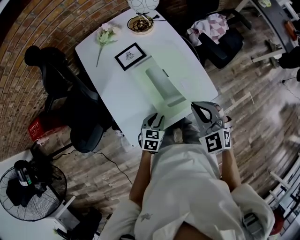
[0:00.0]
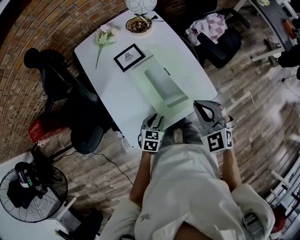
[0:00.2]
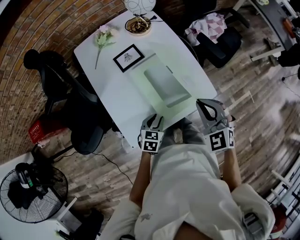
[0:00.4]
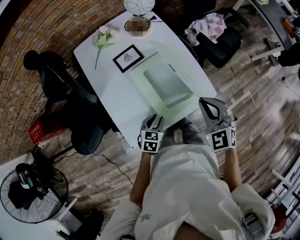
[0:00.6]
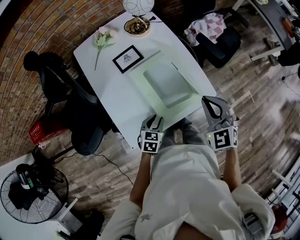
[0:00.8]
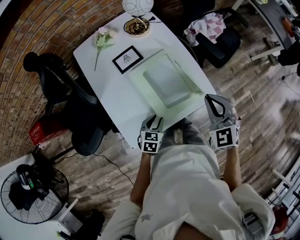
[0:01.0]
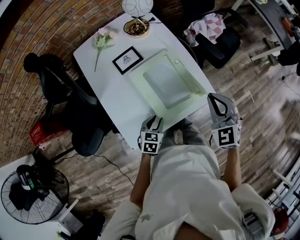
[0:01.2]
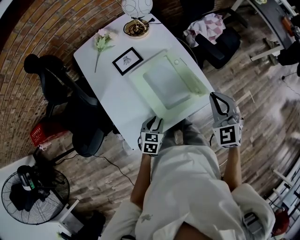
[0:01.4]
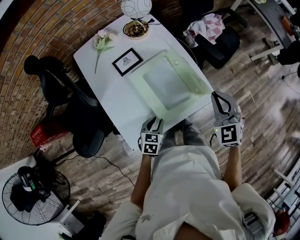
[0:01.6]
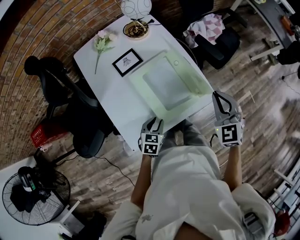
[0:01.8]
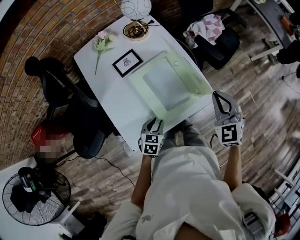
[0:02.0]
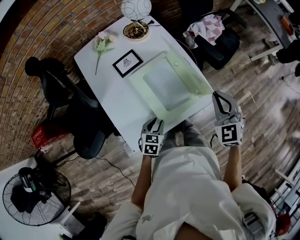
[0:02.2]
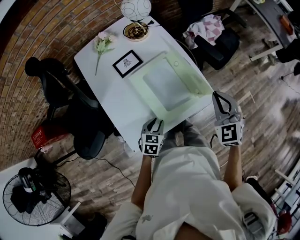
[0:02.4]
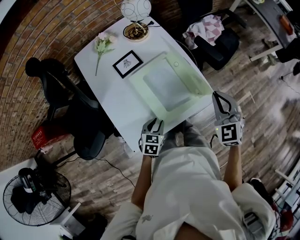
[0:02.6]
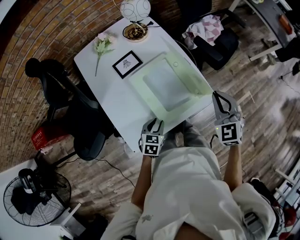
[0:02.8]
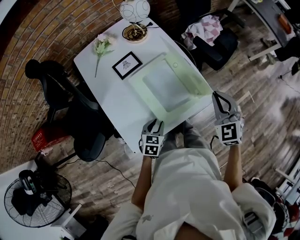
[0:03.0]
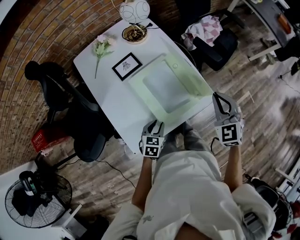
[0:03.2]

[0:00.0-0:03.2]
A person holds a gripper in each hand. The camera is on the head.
0:00.0 to 0:01.6: The right gripper heads to the right and forward, covering some 10 cm.
0:01.6 to 0:03.2: The two grippers keep their place.

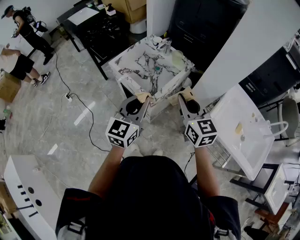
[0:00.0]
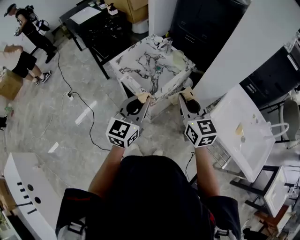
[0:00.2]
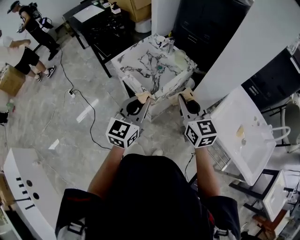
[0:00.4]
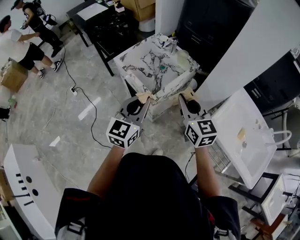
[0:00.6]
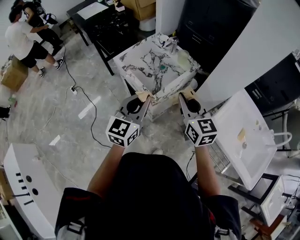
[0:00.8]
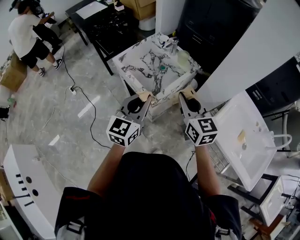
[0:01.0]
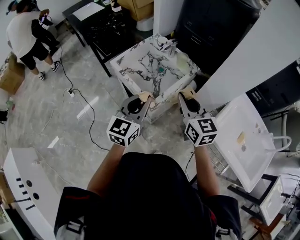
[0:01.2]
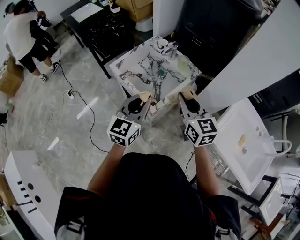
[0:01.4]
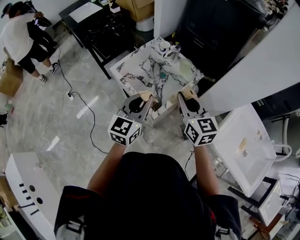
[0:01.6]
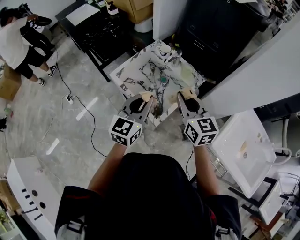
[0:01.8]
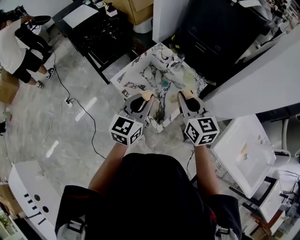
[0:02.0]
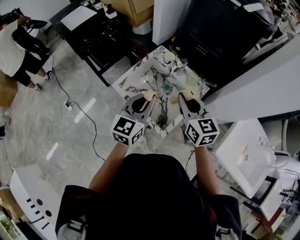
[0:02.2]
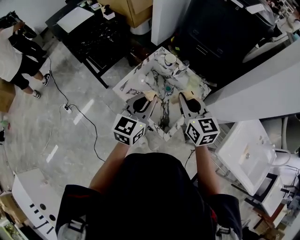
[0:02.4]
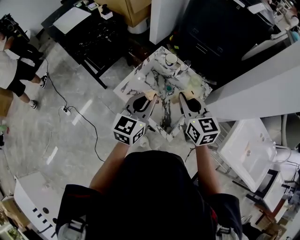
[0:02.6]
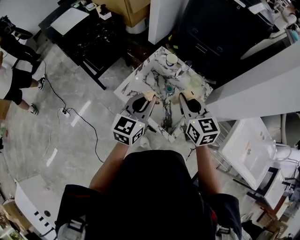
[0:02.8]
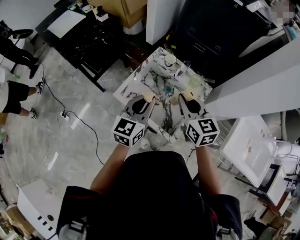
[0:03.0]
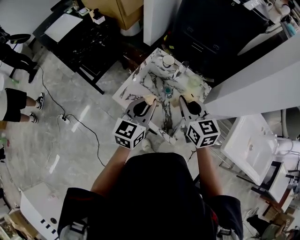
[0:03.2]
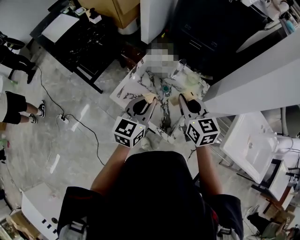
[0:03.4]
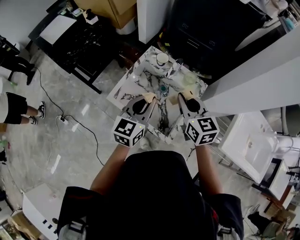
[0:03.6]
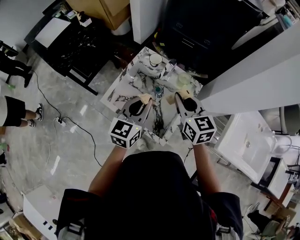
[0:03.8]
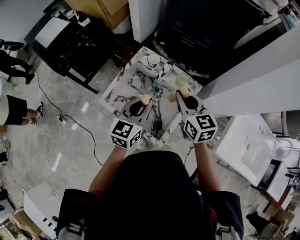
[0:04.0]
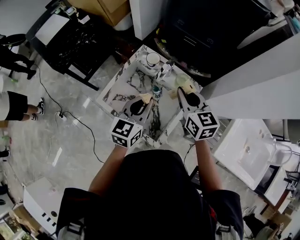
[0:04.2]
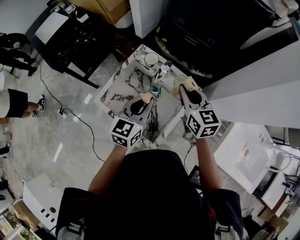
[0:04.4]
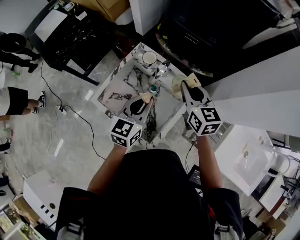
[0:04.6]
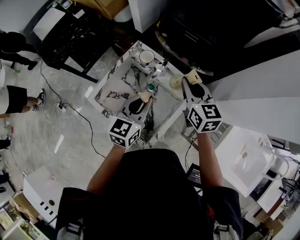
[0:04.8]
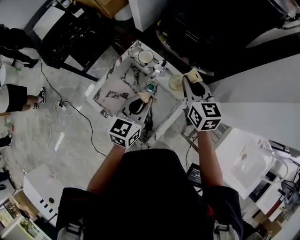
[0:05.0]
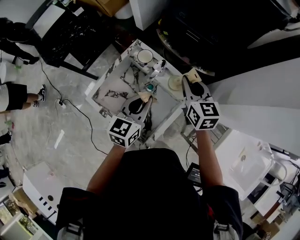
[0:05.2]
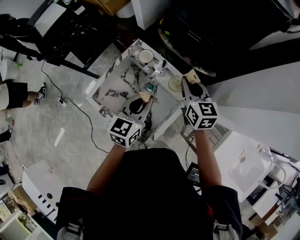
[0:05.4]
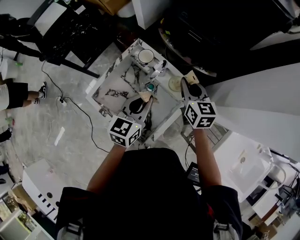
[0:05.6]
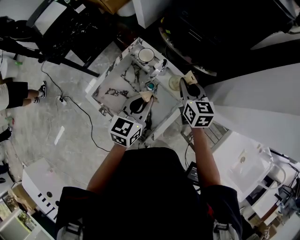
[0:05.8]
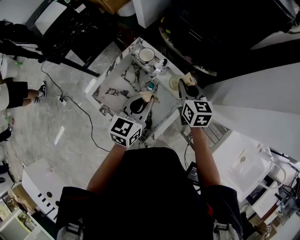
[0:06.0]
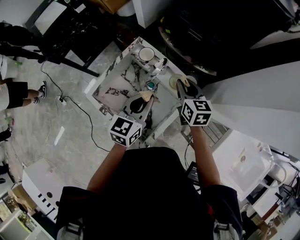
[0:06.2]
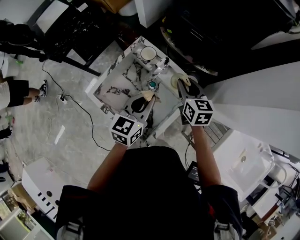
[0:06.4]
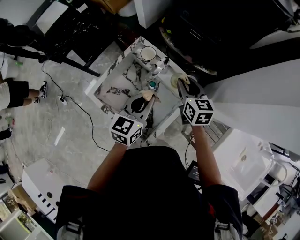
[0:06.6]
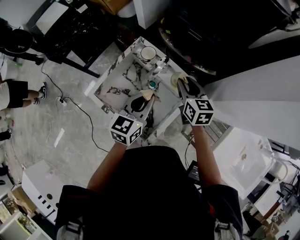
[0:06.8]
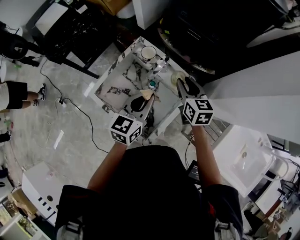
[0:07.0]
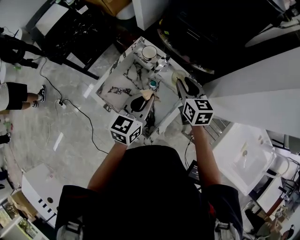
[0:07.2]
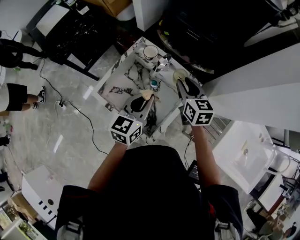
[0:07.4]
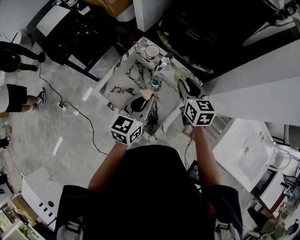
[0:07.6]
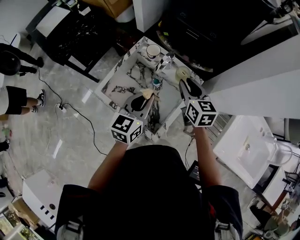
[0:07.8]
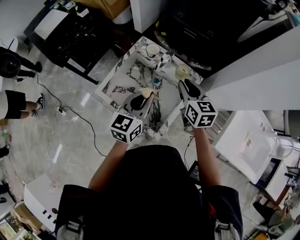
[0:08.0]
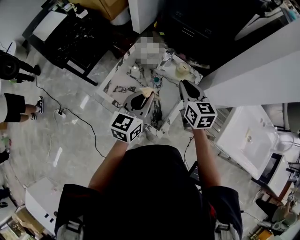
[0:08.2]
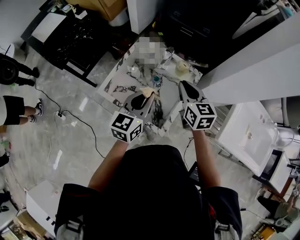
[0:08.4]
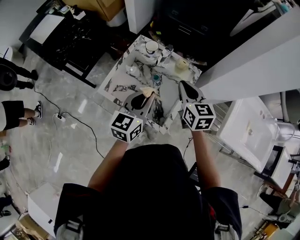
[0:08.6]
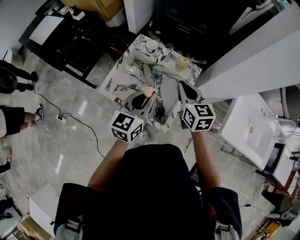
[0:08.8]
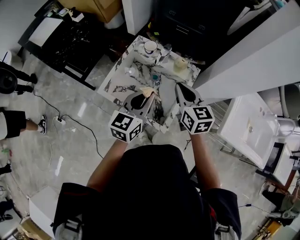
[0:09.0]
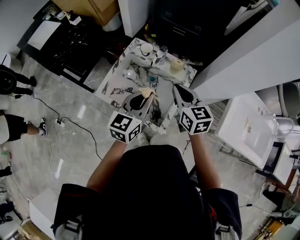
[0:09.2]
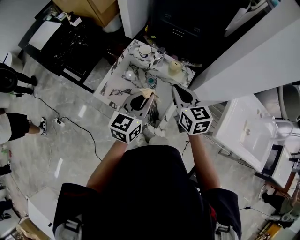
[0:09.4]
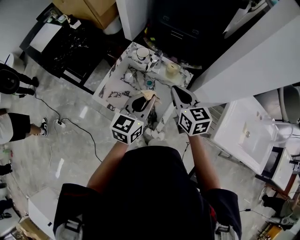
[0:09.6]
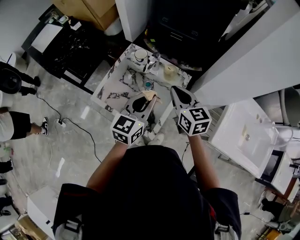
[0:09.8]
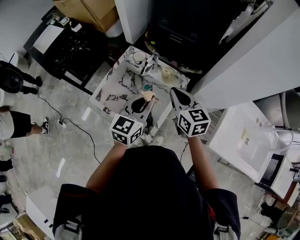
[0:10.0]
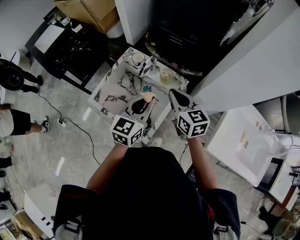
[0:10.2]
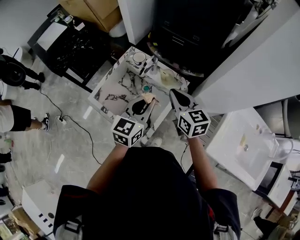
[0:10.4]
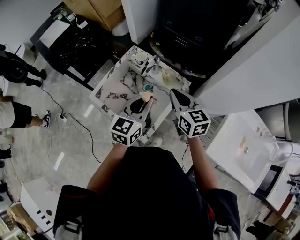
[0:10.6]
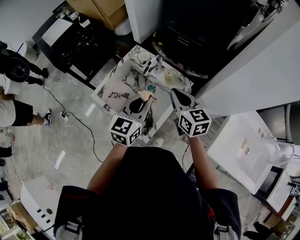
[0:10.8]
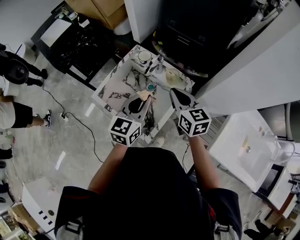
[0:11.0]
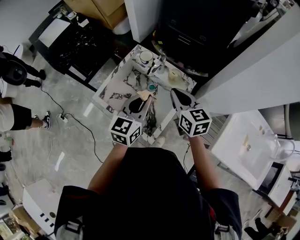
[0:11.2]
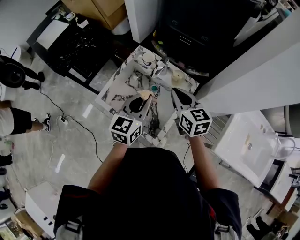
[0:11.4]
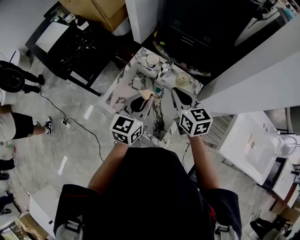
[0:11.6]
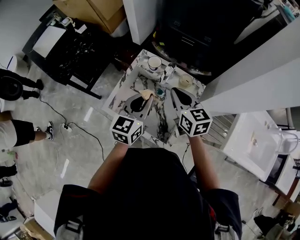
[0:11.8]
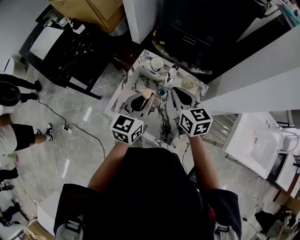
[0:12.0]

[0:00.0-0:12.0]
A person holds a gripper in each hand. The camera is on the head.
0:00.0 to 0:01.6: Both grippers move forward, about 10 cm.
0:01.6 to 0:03.0: Both grippers travel together forward and to the left, roughly 20 cm.
0:03.0 to 0:04.4: The left gripper heads to the right and forward, covering roughly 15 cm. Meanwhile the right gripper travels forward and to the right by roughly 15 cm.
0:04.4 to 0:06.0: The left gripper changes place by about 5 cm; the right gripper goes some 10 cm downward and forward.
0:06.0 to 0:07.6: The grippers both shift backward by approximately 5 cm.
0:07.6 to 0:09.0: The right gripper moves backward, roughly 10 cm, and closes up. The left gripper is displaced backward by roughly 5 cm.
0:09.0 to 0:10.4: The grippers both shift to the right by approximately 10 cm.
0:10.4 to 0:12.0: Both grippers move to the left and forward, some 15 cm.

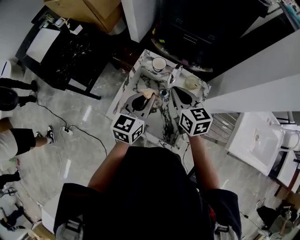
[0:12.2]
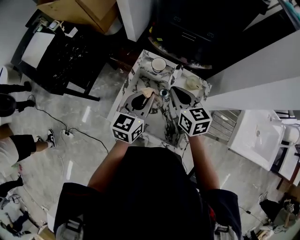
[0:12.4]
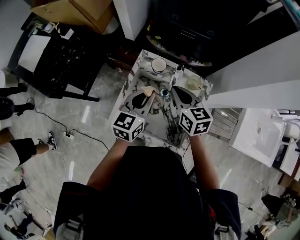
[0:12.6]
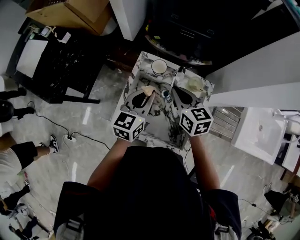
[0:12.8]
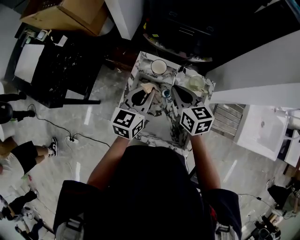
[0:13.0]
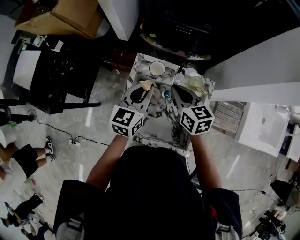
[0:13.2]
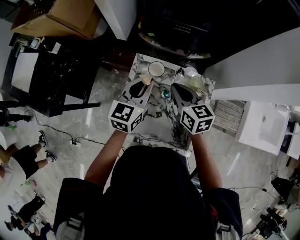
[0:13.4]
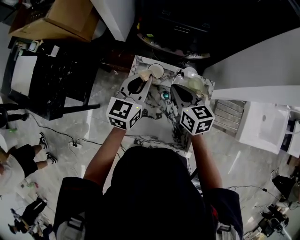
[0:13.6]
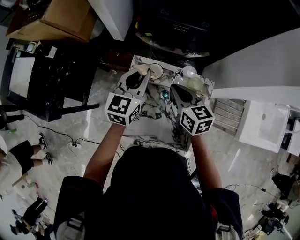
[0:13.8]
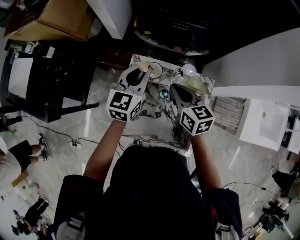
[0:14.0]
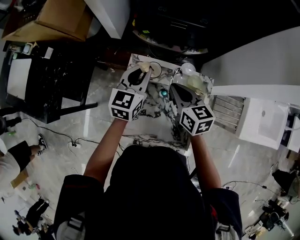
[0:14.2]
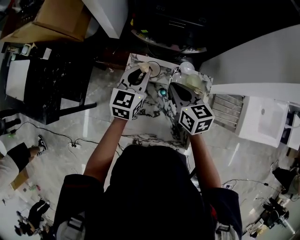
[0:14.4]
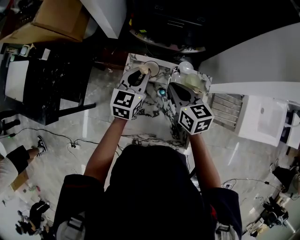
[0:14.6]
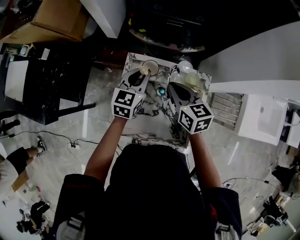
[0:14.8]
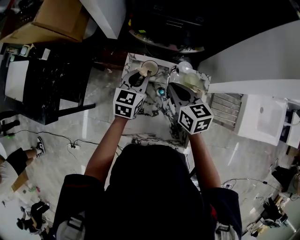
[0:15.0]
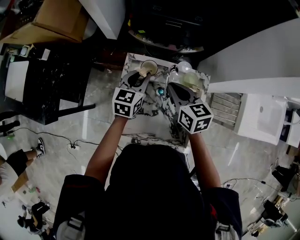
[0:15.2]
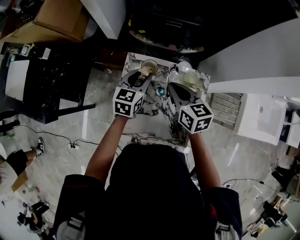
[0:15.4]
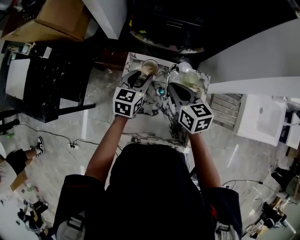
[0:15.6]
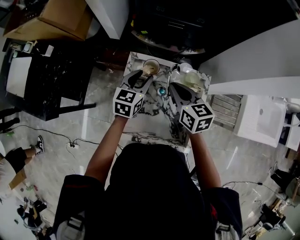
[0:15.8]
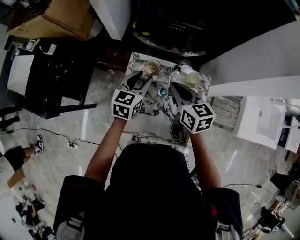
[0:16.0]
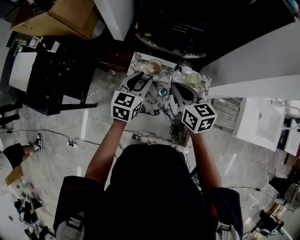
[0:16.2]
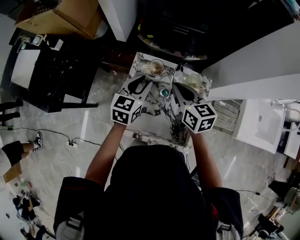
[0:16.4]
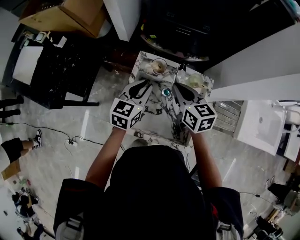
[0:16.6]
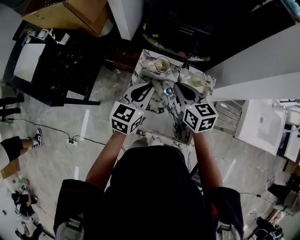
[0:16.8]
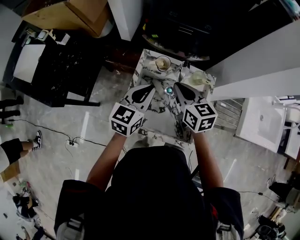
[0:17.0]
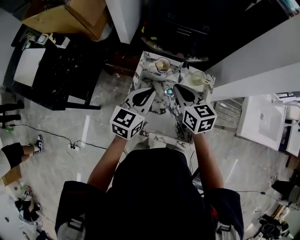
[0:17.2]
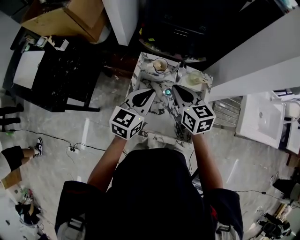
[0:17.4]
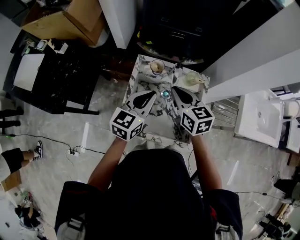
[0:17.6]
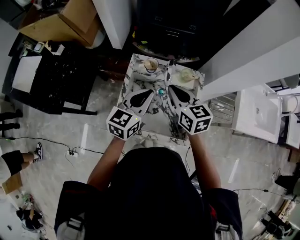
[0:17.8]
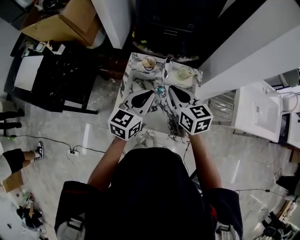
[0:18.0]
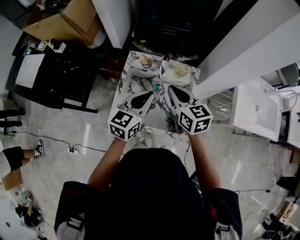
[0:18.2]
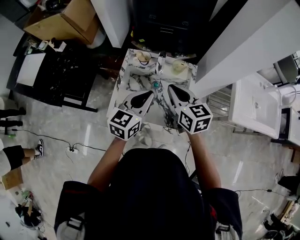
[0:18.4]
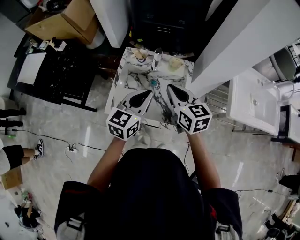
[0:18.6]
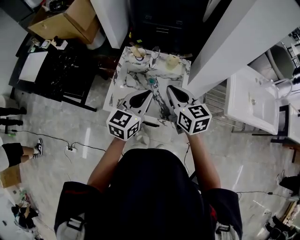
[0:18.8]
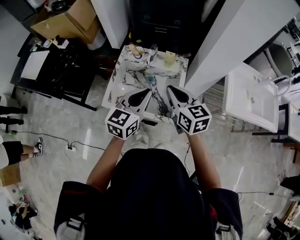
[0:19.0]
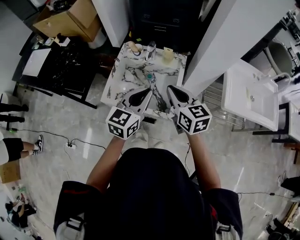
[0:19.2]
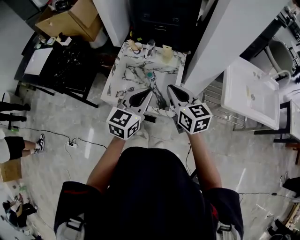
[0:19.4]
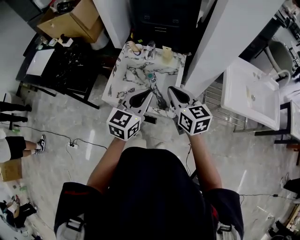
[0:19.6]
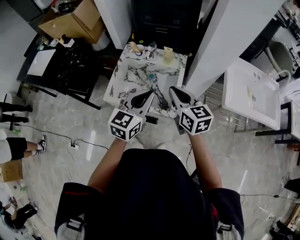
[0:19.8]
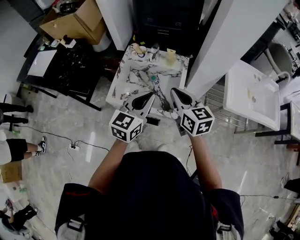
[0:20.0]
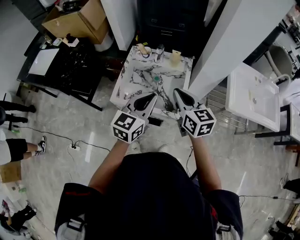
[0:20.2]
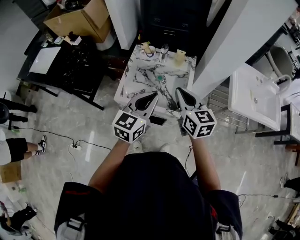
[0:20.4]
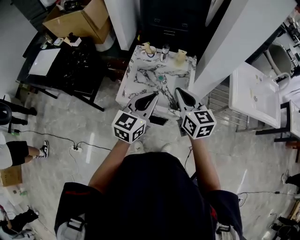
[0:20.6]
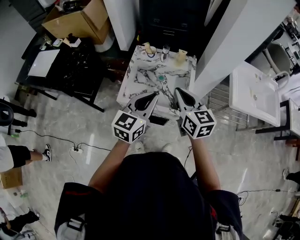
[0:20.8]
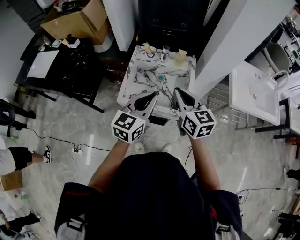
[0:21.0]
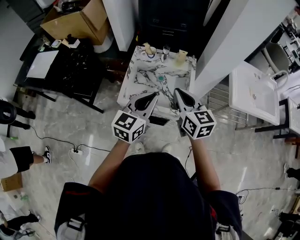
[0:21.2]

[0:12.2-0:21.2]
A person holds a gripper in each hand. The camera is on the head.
0:12.2 to 0:13.8: The left gripper heads forward, covering roughly 15 cm, while the right gripper shifts some 10 cm forward.
0:13.8 to 0:15.2: The left gripper goes approximately 10 cm downward.
0:15.2 to 0:16.6: The left gripper travels backward and upward by about 10 cm.
0:16.6 to 0:18.2: The right gripper shifts approximately 10 cm backward. The left gripper goes approximately 15 cm backward, to the right and upward.
0:18.2 to 0:19.8: The grippers both shift backward and to the right by approximately 20 cm.
0:19.8 to 0:21.2: The two grippers go roughly 10 cm to the left.
